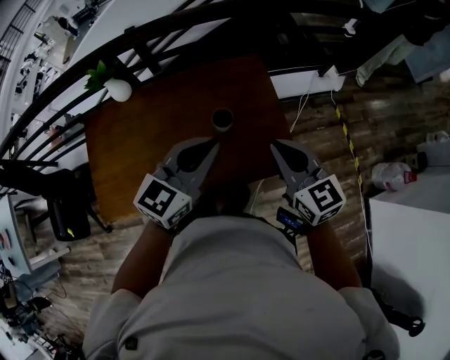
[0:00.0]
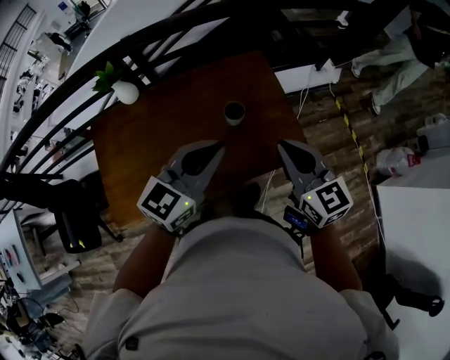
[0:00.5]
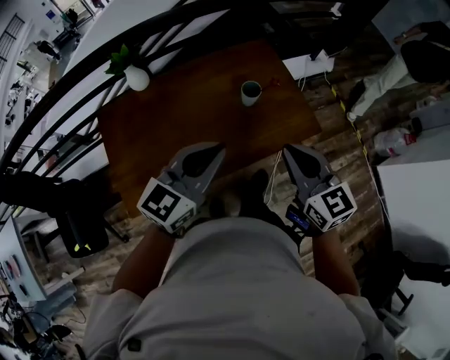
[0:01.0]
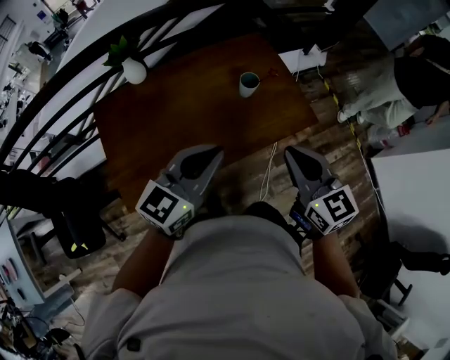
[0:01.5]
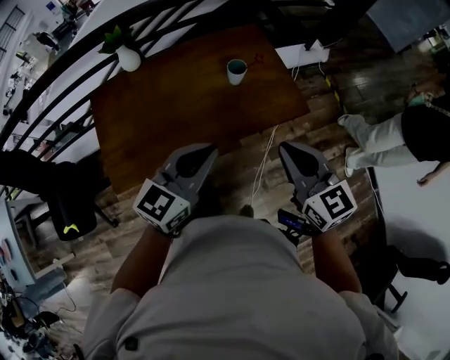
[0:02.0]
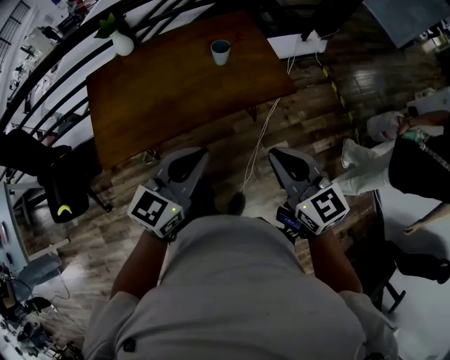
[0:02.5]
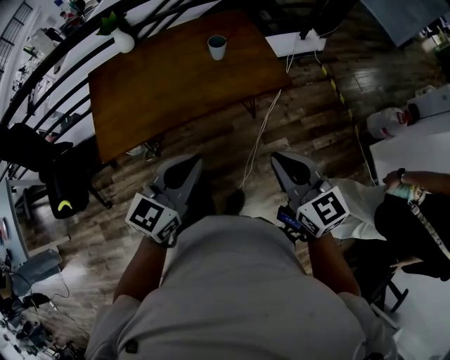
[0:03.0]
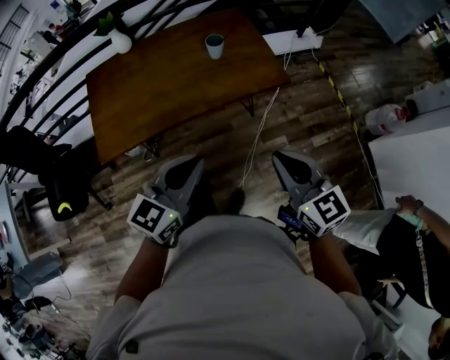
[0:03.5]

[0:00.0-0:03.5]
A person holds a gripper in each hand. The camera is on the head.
0:00.0 to 0:02.0: The grippers both shift backward by about 30 cm.
0:02.0 to 0:03.5: Both grippers move backward and to the right, about 20 cm.

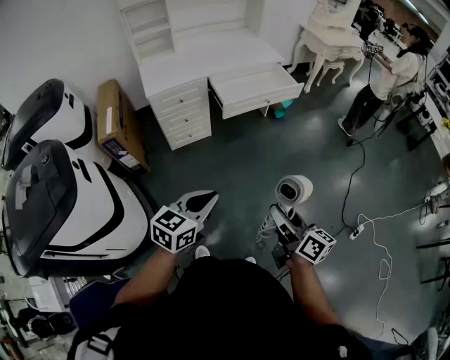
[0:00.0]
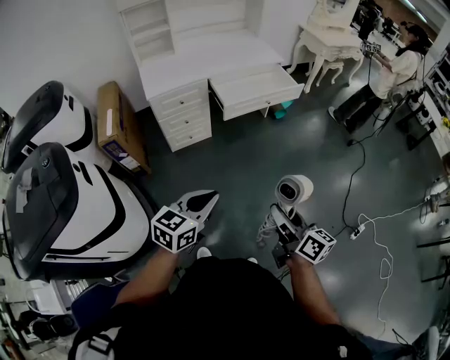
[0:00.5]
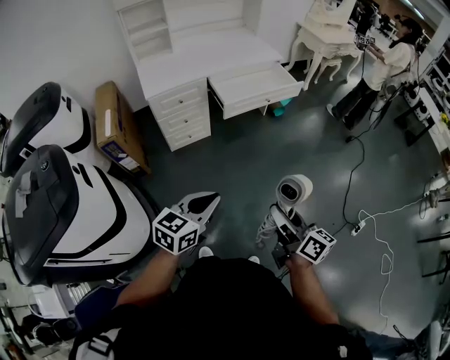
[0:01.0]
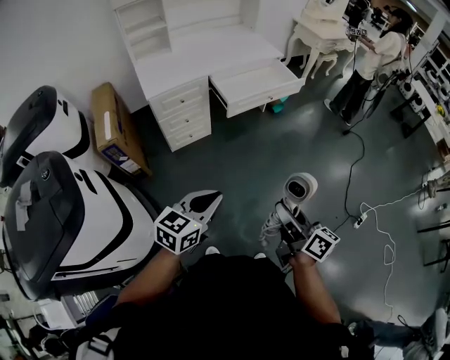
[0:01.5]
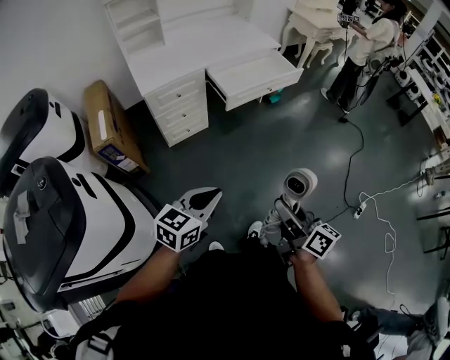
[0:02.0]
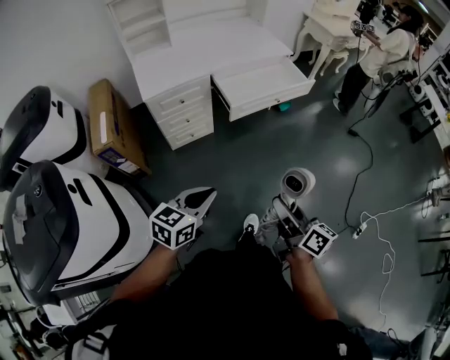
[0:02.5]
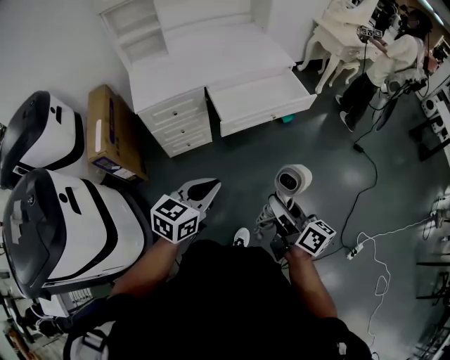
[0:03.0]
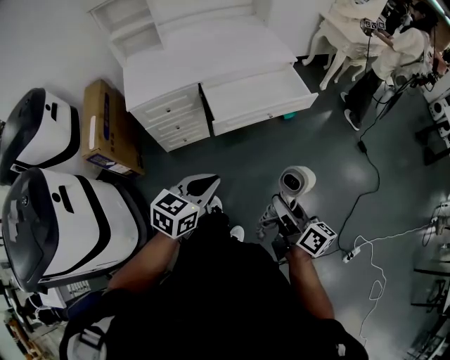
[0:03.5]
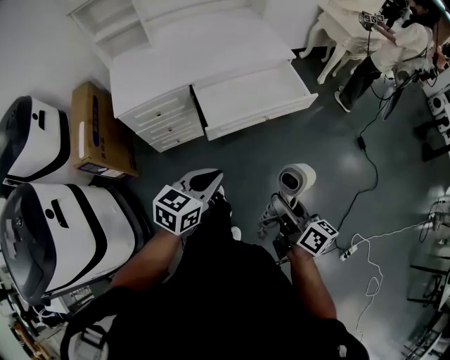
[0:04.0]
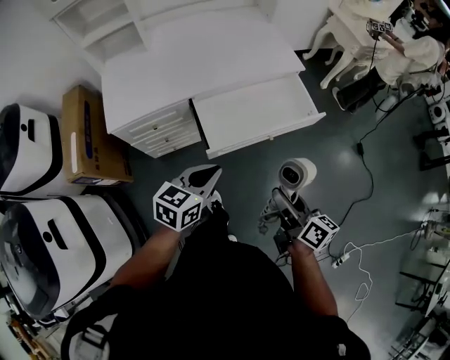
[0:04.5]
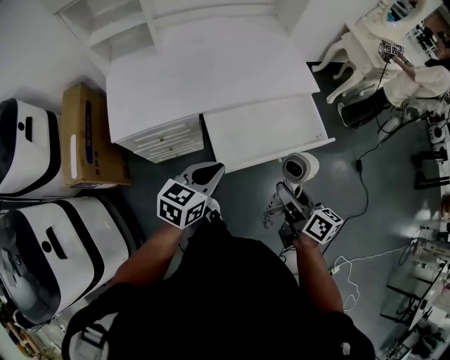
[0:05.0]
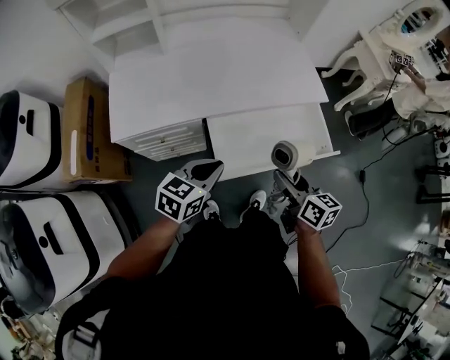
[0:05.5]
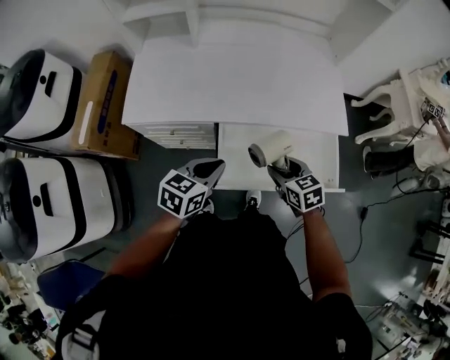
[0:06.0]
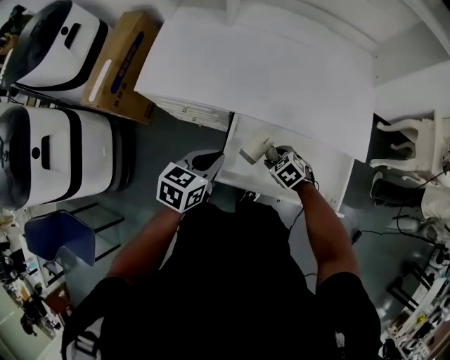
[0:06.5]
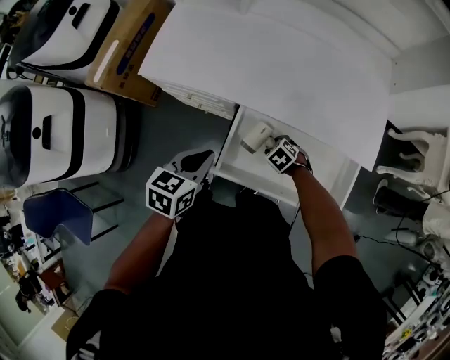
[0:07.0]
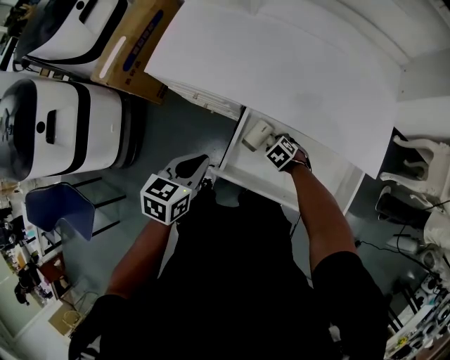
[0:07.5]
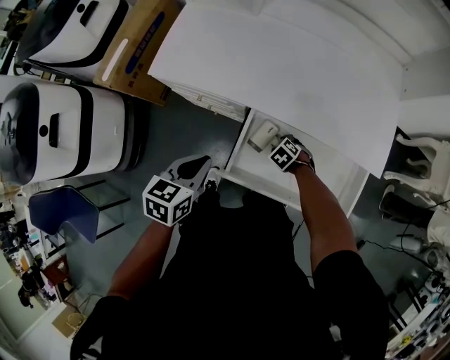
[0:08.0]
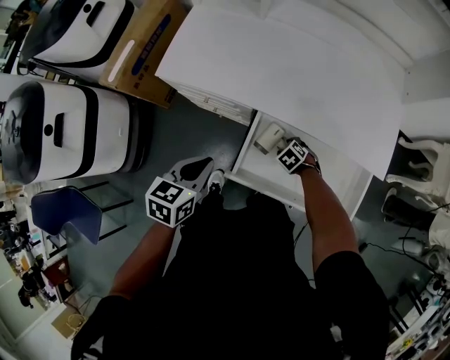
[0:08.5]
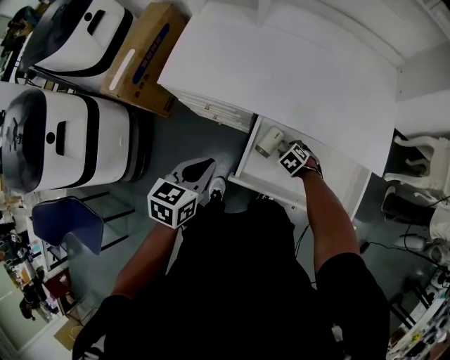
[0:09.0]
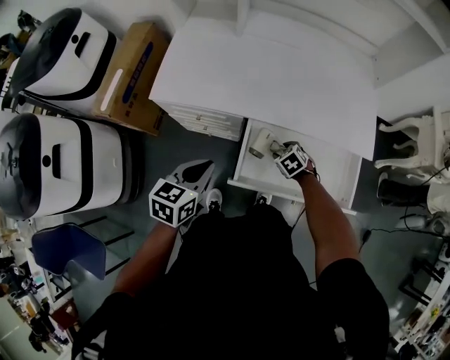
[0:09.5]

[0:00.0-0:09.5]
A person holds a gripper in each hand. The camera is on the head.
0:00.0 to 0:02.0: The two grippers go approximately 10 cm to the left.
0:02.0 to 0:04.0: The grippers both shift forward and to the right by some 35 cm.
0:04.0 to 0:05.5: Both grippers travel together forward, about 30 cm. The right gripper turns by some 20 degrees.
0:05.5 to 0:07.5: The right gripper goes some 30 cm downward, and tips its fingers downward by roughly 50 degrees, while the left gripper goes approximately 5 cm downward, and turns by approximately 40 degrees.
0:07.5 to 0:09.5: The left gripper ends up roughly 5 cm from where it was, while the right gripper moves upward, approximately 5 cm.

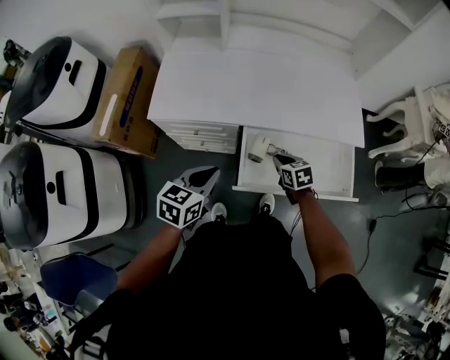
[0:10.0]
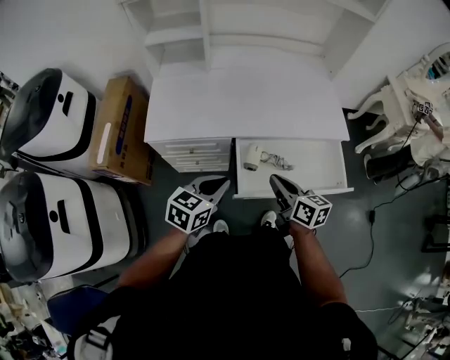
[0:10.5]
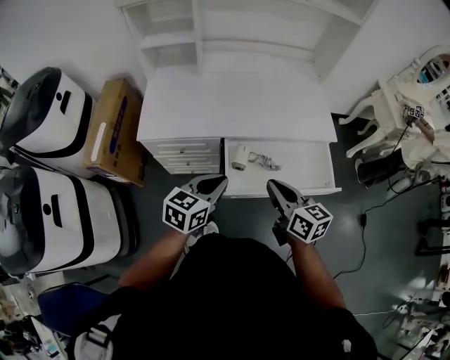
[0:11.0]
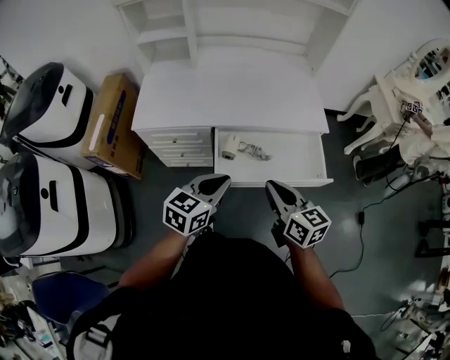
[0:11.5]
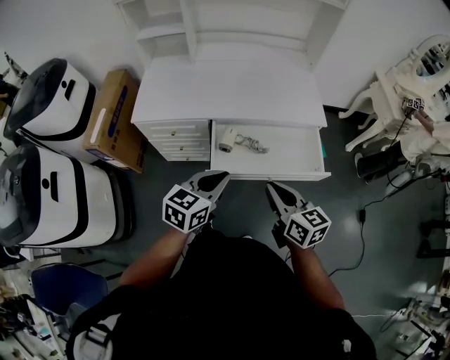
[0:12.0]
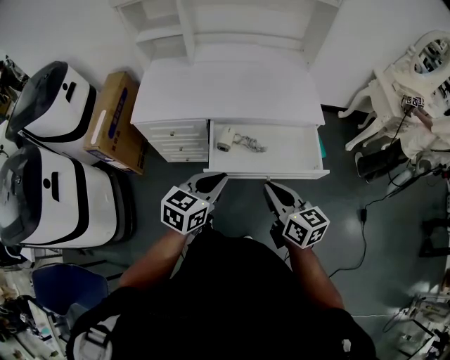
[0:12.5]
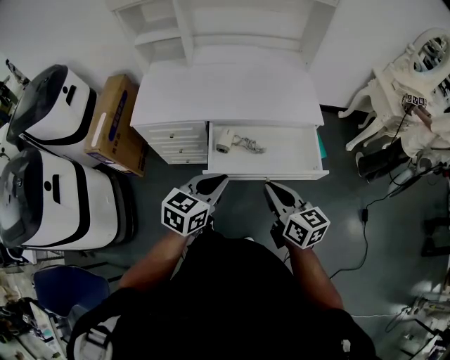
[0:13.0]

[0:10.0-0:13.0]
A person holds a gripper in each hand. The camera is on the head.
0:10.0 to 0:11.5: The right gripper goes roughly 30 cm upward and backward, and tilts its fingers approximately 30 degrees upward. The left gripper travels to the right, backward and upward by some 15 cm.
0:11.5 to 0:13.0: The left gripper shifts by roughly 5 cm; the right gripper shifts by approximately 5 cm.

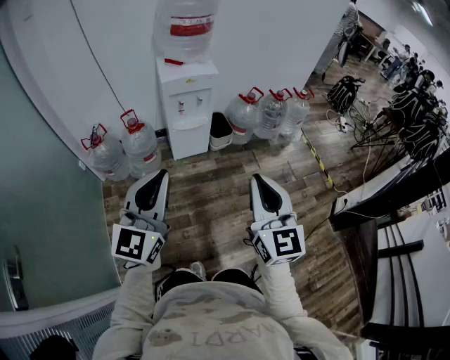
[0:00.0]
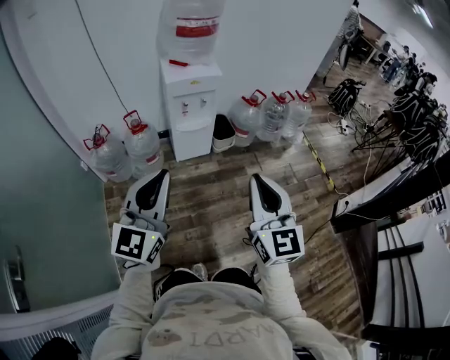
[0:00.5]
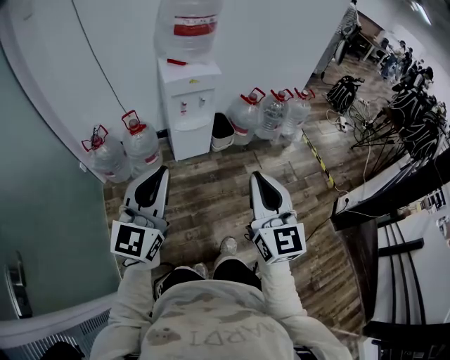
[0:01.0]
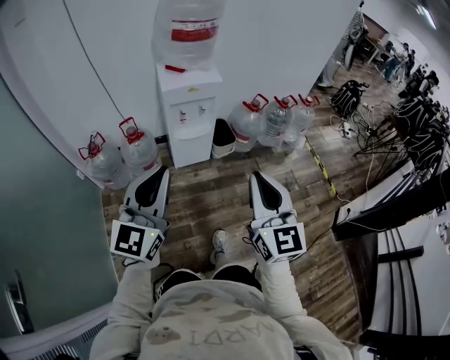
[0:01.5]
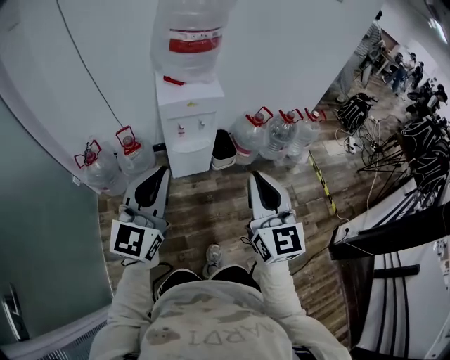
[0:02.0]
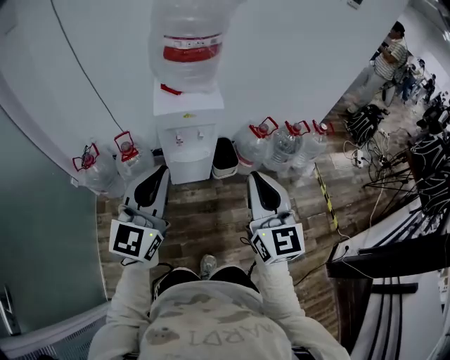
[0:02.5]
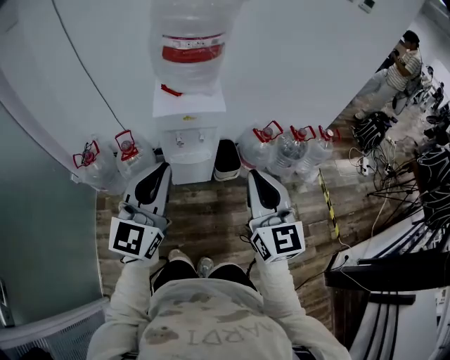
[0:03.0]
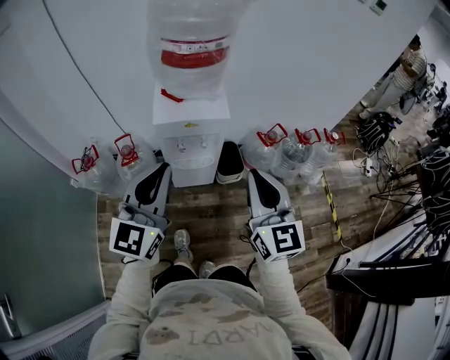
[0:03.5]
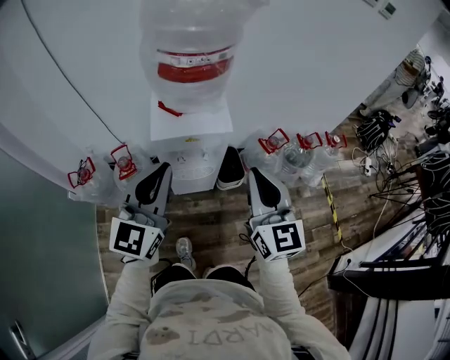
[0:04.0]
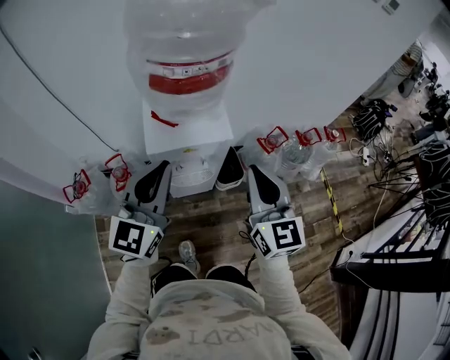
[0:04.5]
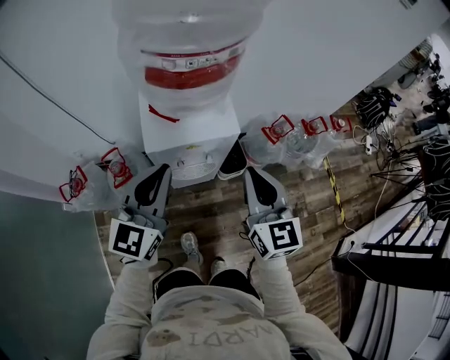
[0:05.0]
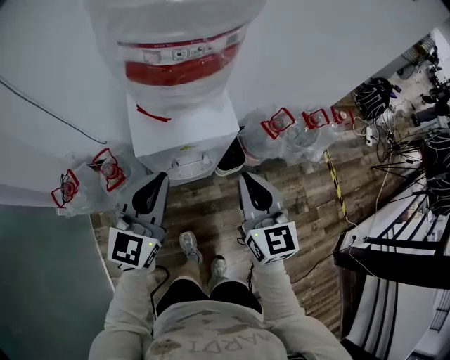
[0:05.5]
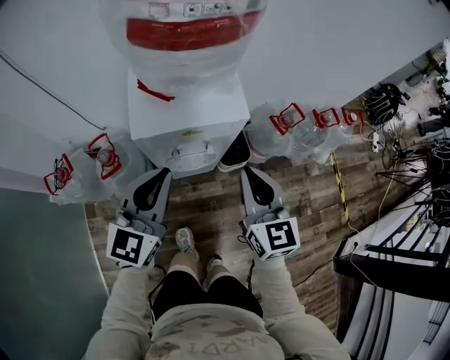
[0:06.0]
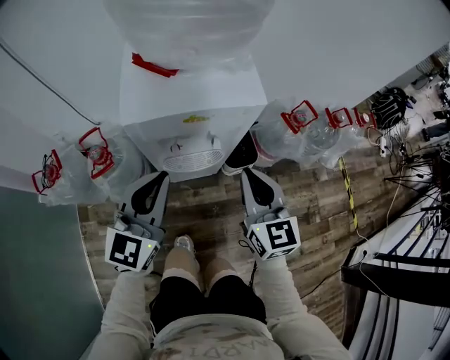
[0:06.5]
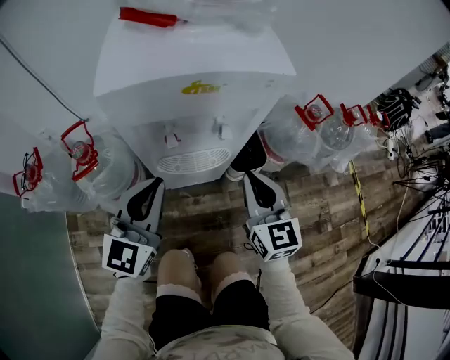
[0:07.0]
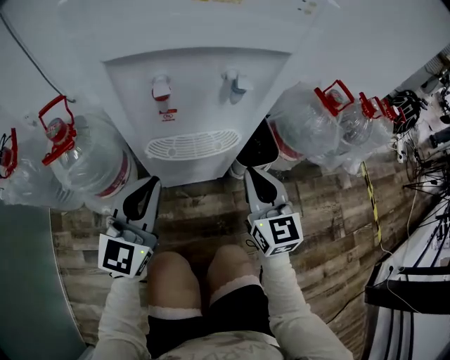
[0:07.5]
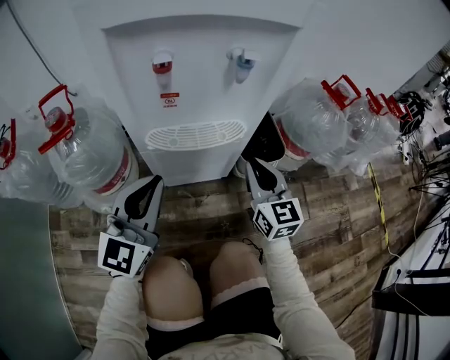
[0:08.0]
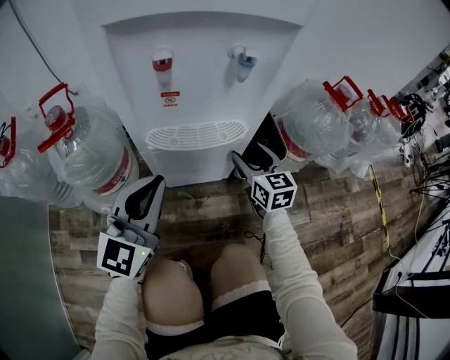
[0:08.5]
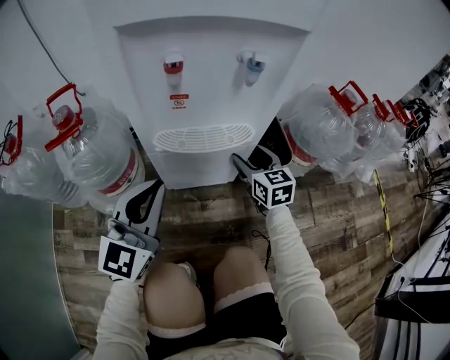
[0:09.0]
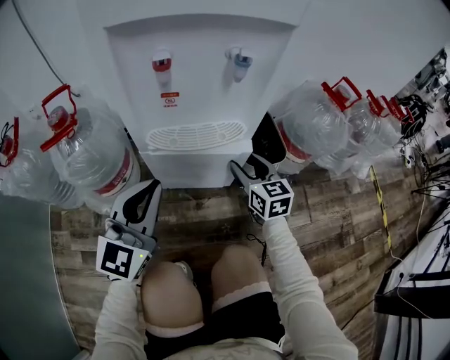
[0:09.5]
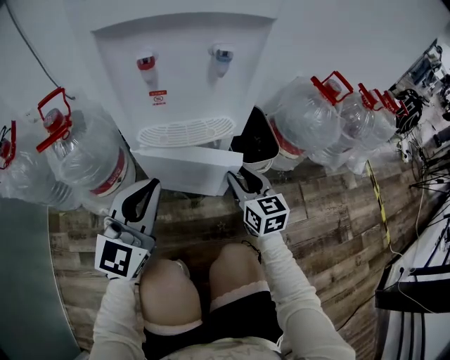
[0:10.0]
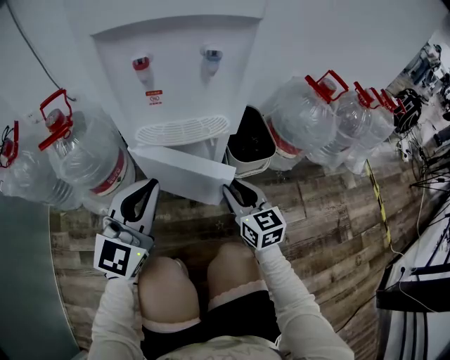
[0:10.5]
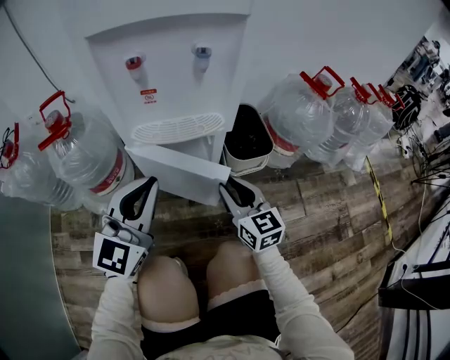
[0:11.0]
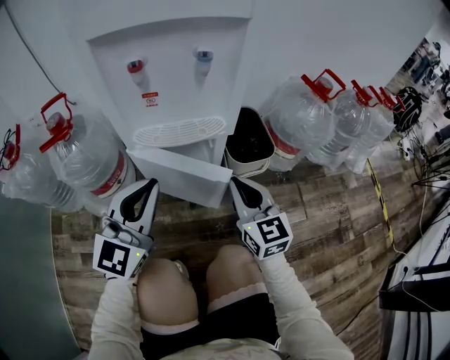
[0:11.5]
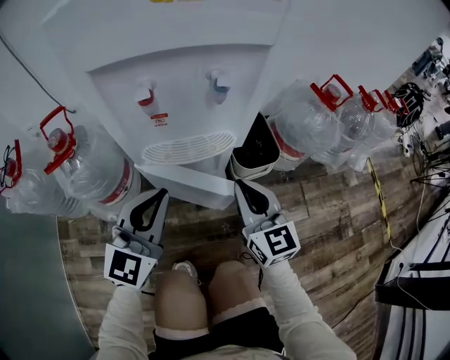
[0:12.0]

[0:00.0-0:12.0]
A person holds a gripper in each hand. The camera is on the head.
0:00.0 to 0:02.0: Both grippers move forward, approximately 20 cm.
0:02.0 to 0:04.0: Both grippers travel together forward, some 25 cm.
0:04.0 to 0:06.0: Both grippers move downward and forward, roughly 20 cm.
0:06.0 to 0:08.0: The two grippers go about 50 cm downward.
0:08.0 to 0:10.0: The right gripper moves downward, approximately 5 cm, goes forward and returns, about 5 cm each way, and opens its fingers.
0:10.0 to 0:12.0: The right gripper travels upward by some 15 cm, and closes up.
